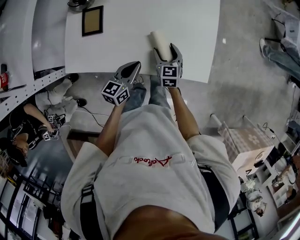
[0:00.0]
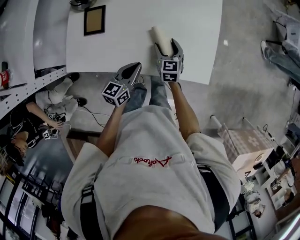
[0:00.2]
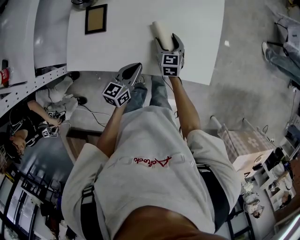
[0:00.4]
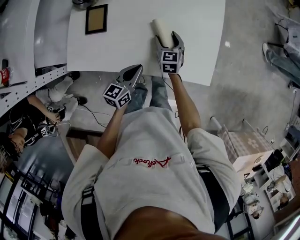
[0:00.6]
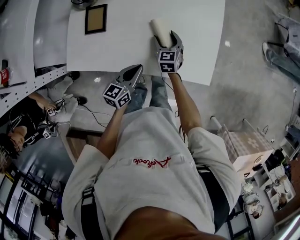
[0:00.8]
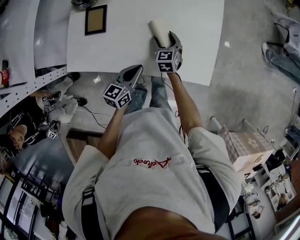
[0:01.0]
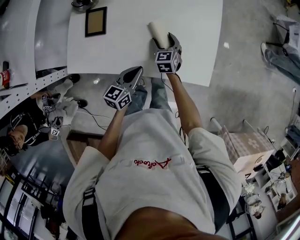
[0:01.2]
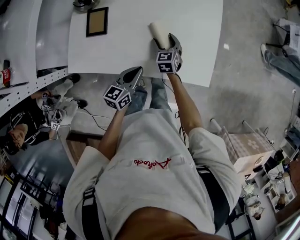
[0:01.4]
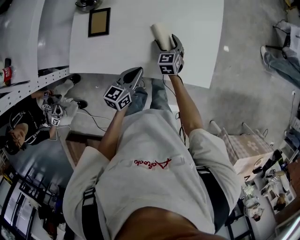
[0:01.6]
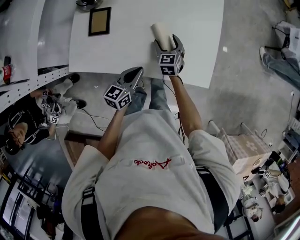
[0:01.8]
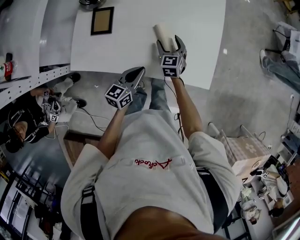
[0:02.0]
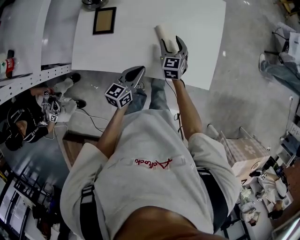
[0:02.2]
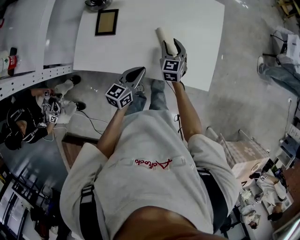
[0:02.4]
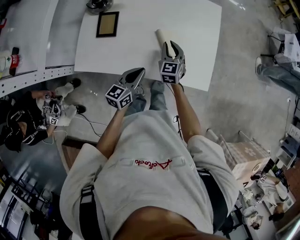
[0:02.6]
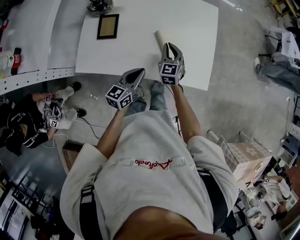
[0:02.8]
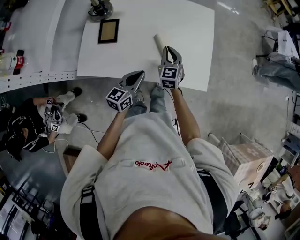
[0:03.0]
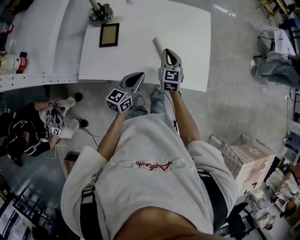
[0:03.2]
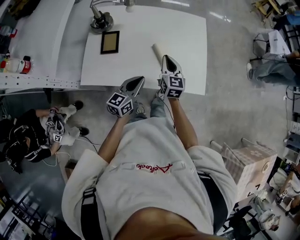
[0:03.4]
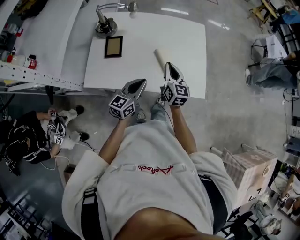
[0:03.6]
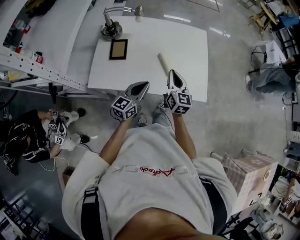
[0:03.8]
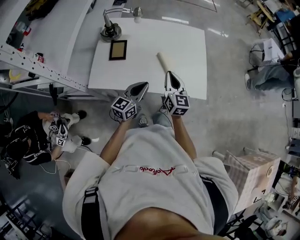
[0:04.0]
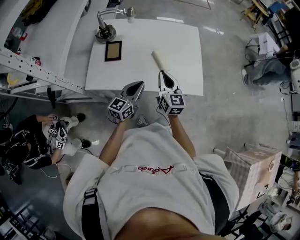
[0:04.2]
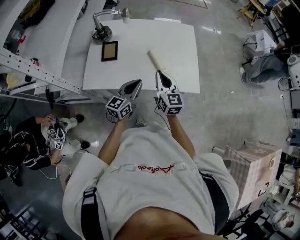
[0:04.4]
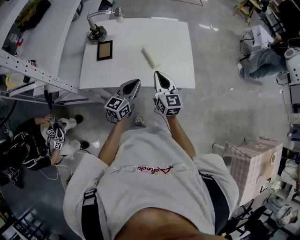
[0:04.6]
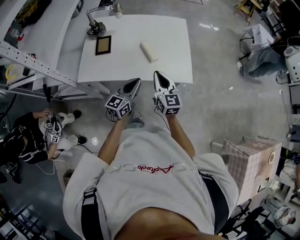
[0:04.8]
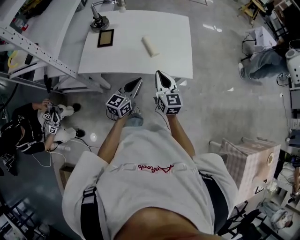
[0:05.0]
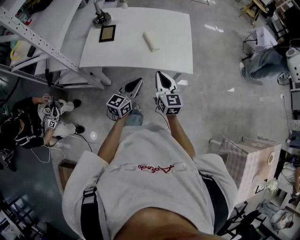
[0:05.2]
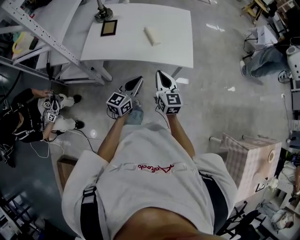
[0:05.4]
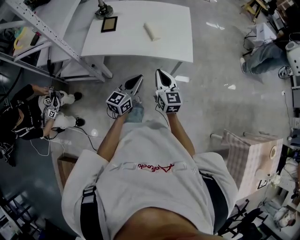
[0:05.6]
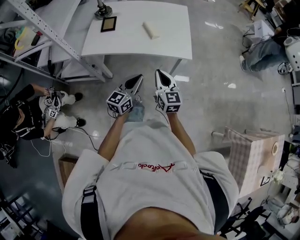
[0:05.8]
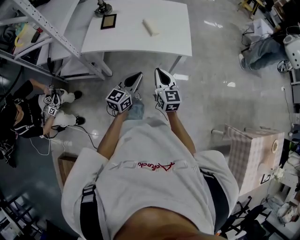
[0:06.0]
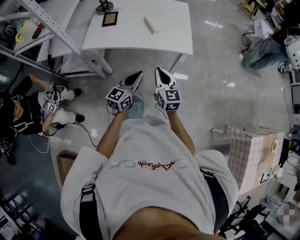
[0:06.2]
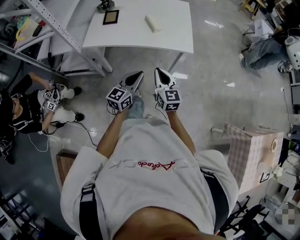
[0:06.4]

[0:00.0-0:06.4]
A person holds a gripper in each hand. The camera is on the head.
0:00.0 to 0:01.6: The right gripper shifts approximately 5 cm forward.
0:01.6 to 0:03.2: The right gripper moves upward, about 15 cm, and closes up. Meanwhile the left gripper goes some 5 cm upward.
0:03.2 to 0:04.8: The right gripper travels backward and upward by about 20 cm. The left gripper shifts roughly 10 cm backward, upward and to the right.
0:04.8 to 0:06.4: The grippers both shift backward by some 20 cm.

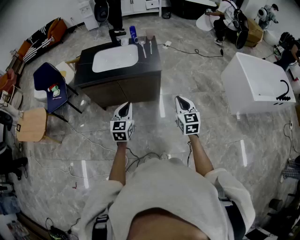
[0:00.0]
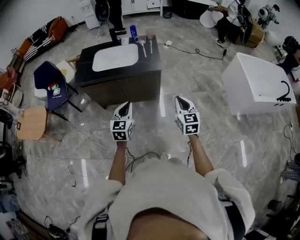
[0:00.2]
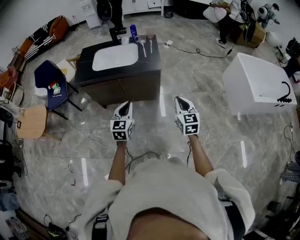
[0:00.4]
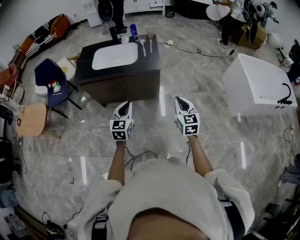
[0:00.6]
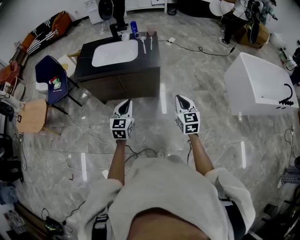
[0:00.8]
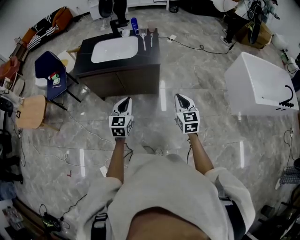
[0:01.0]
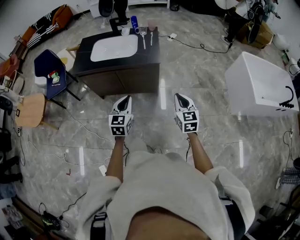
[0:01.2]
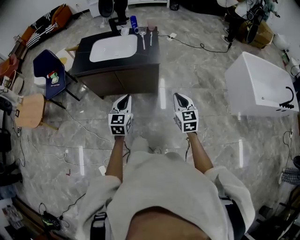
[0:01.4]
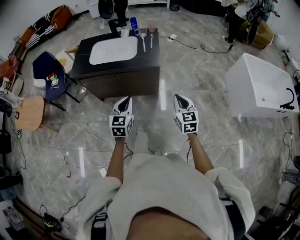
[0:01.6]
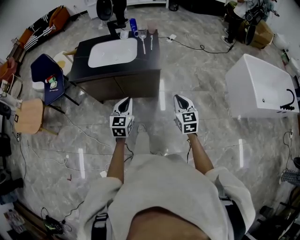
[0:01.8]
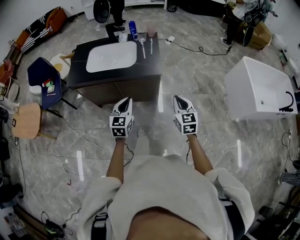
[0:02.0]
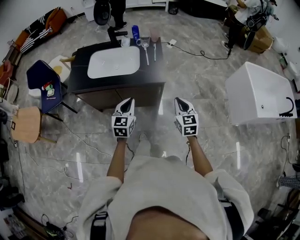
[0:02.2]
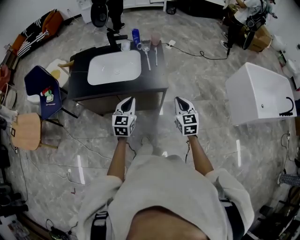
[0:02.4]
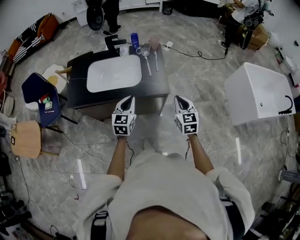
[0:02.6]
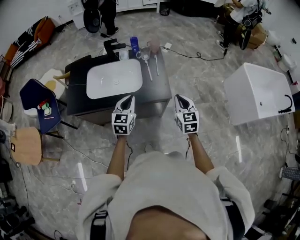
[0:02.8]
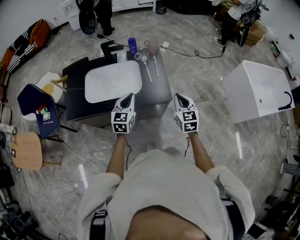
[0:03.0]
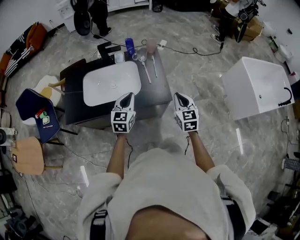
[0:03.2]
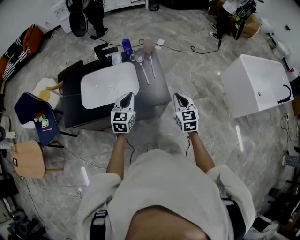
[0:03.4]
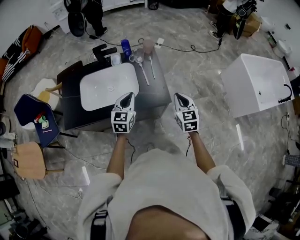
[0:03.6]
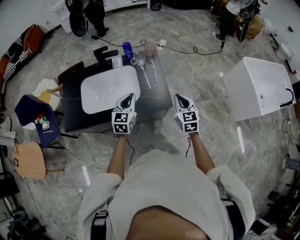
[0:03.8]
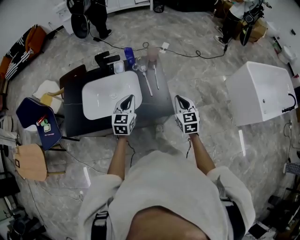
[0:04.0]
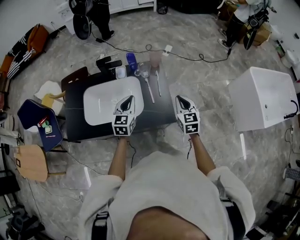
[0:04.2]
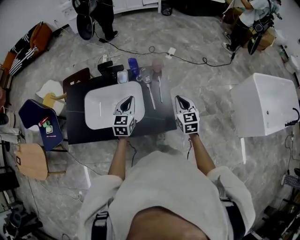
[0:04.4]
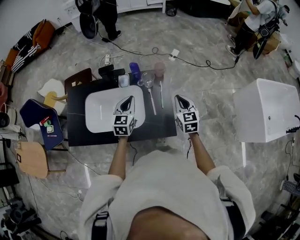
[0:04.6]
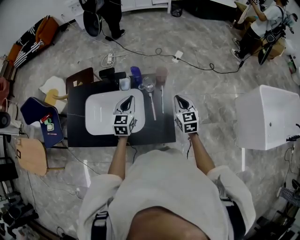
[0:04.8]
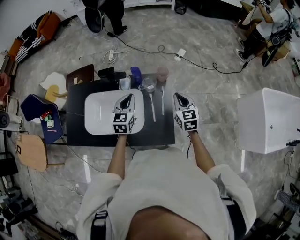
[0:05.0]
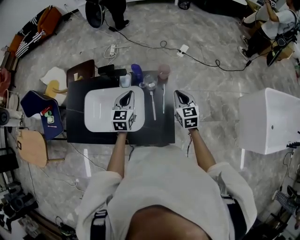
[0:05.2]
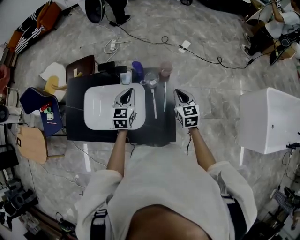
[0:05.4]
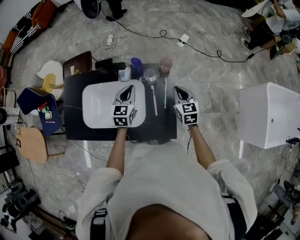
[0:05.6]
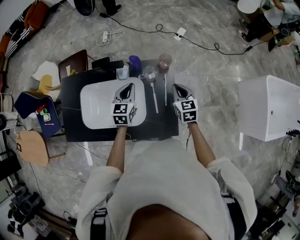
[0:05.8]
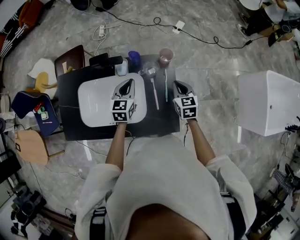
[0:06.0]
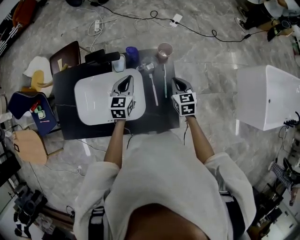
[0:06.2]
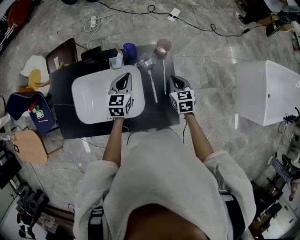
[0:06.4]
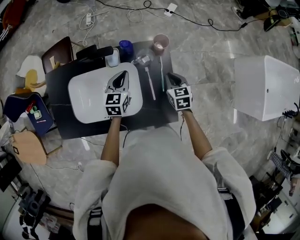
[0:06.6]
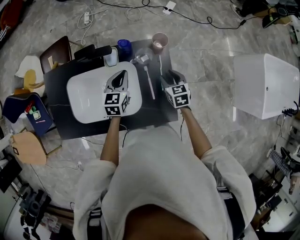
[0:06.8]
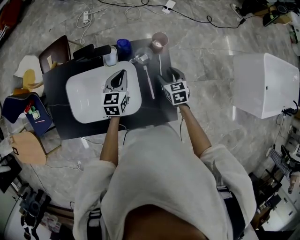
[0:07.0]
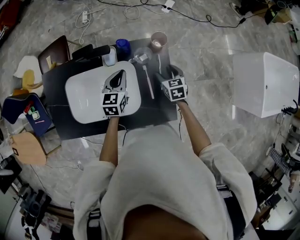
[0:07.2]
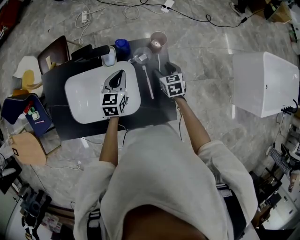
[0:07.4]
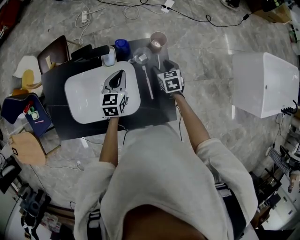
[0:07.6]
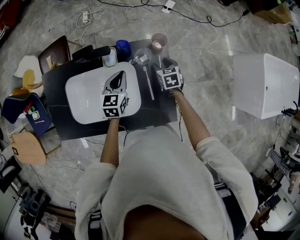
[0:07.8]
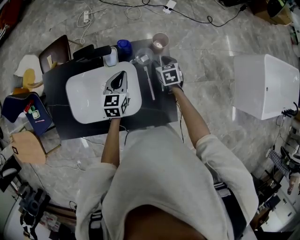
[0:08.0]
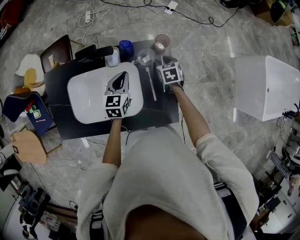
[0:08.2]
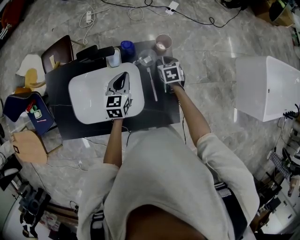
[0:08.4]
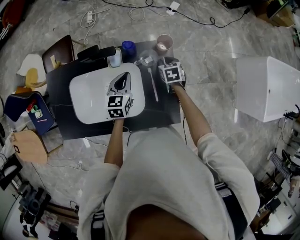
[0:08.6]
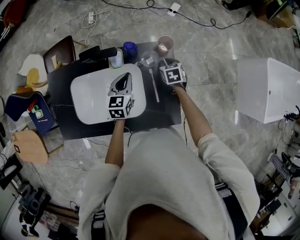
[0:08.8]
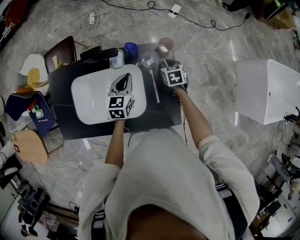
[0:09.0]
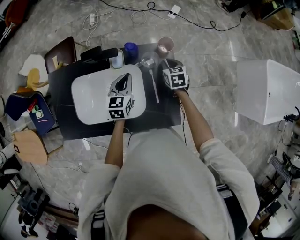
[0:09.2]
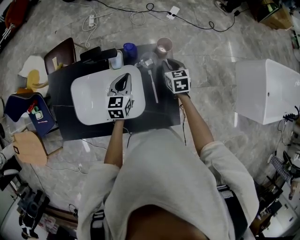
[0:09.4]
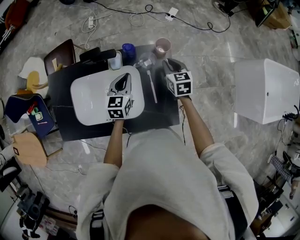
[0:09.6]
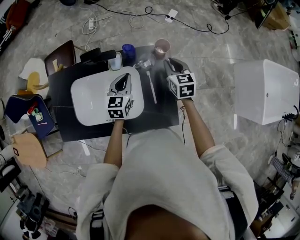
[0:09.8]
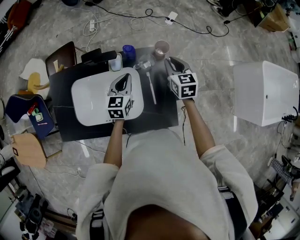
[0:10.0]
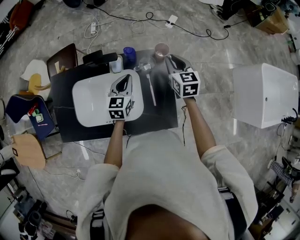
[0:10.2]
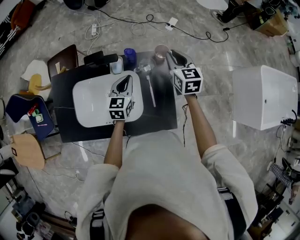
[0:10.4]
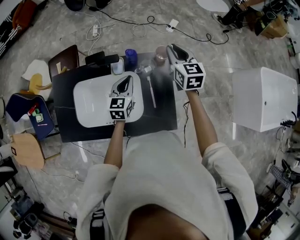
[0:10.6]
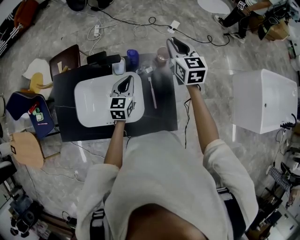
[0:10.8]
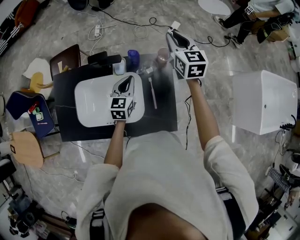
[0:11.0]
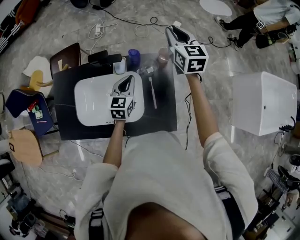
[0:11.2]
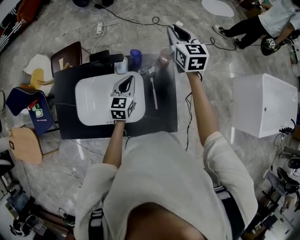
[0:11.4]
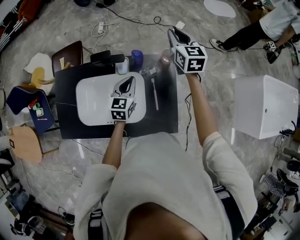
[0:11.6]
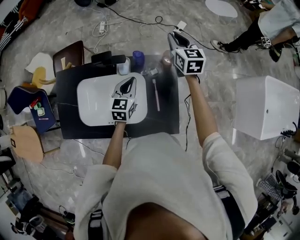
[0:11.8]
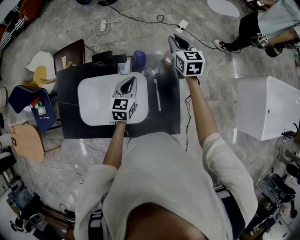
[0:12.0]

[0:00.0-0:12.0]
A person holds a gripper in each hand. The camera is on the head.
0:00.0 to 0:01.6: The right gripper moves roughly 5 cm, while the left gripper shifts by roughly 5 cm.
0:01.6 to 0:03.0: Both grippers move forward, some 30 cm.
0:03.0 to 0:04.4: Both grippers travel together forward, approximately 20 cm.
0:04.4 to 0:06.0: The grippers both shift forward and downward by approximately 15 cm.
0:06.0 to 0:07.6: The right gripper heads downward, covering some 10 cm, and opens.
0:07.6 to 0:09.0: The right gripper closes.
0:09.0 to 0:10.4: The right gripper heads upward, covering some 20 cm, and changes its angle by roughly 30 degrees.
0:10.4 to 0:12.0: The right gripper is displaced forward by some 10 cm.

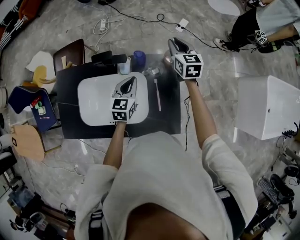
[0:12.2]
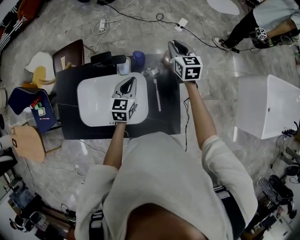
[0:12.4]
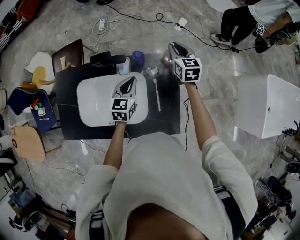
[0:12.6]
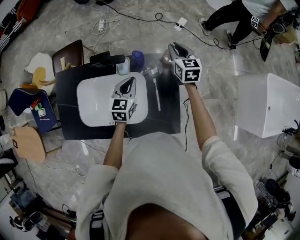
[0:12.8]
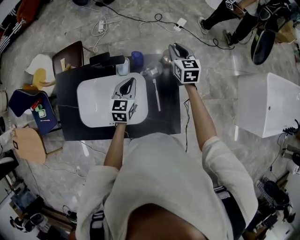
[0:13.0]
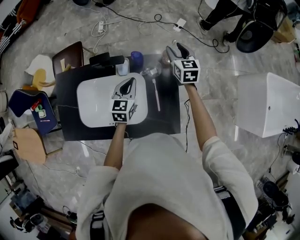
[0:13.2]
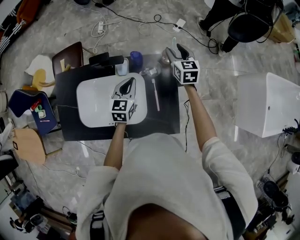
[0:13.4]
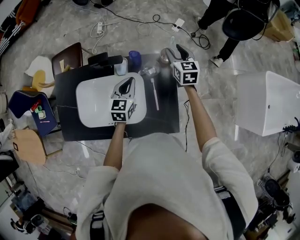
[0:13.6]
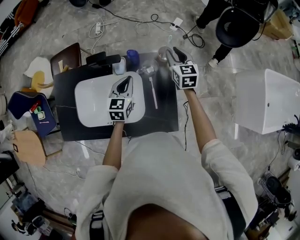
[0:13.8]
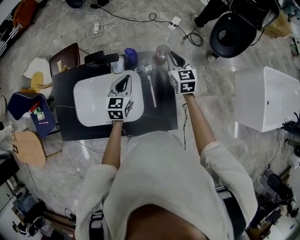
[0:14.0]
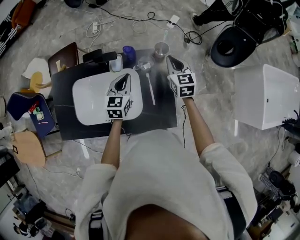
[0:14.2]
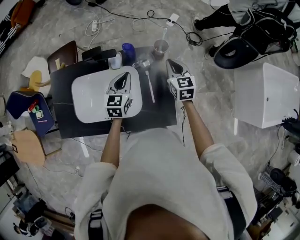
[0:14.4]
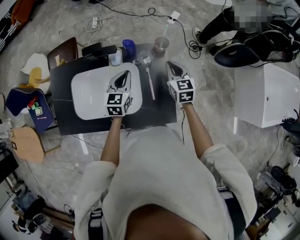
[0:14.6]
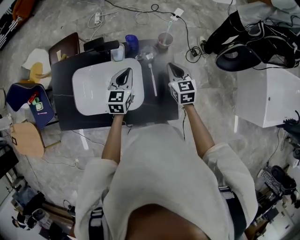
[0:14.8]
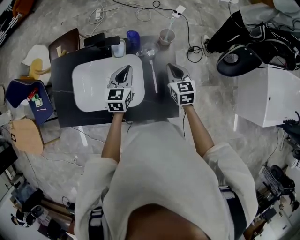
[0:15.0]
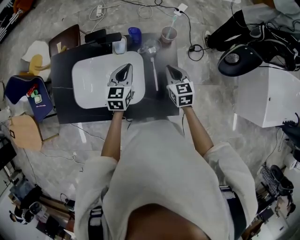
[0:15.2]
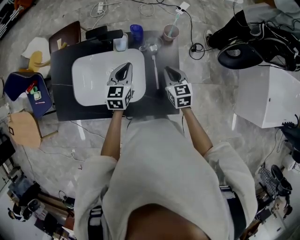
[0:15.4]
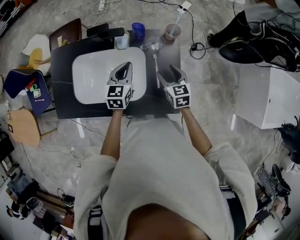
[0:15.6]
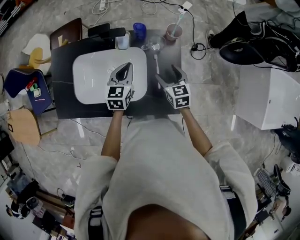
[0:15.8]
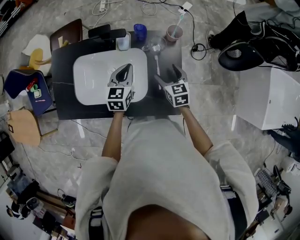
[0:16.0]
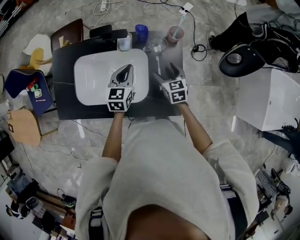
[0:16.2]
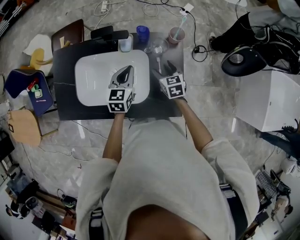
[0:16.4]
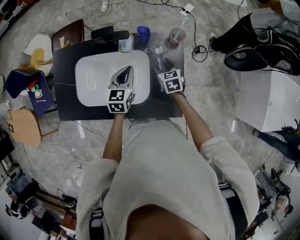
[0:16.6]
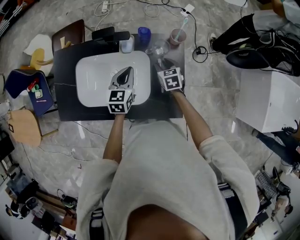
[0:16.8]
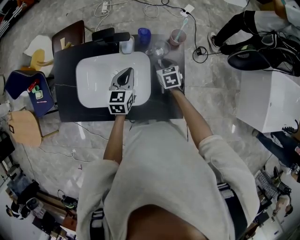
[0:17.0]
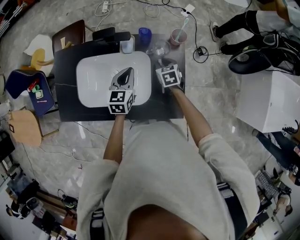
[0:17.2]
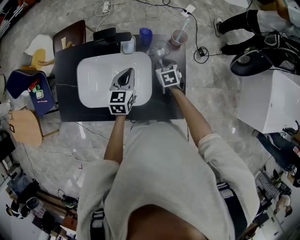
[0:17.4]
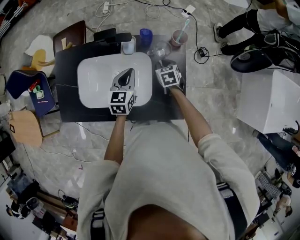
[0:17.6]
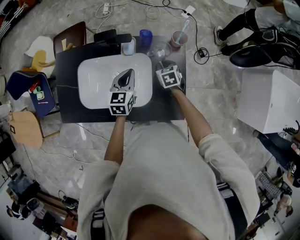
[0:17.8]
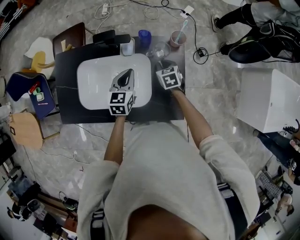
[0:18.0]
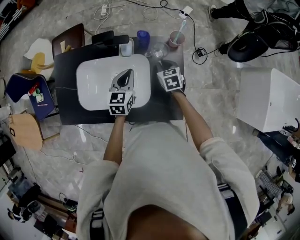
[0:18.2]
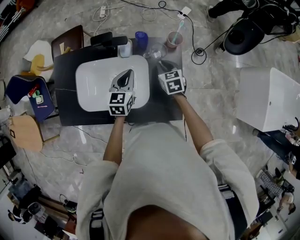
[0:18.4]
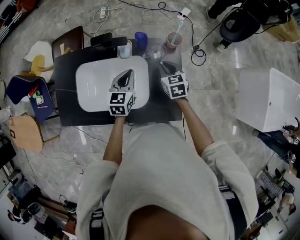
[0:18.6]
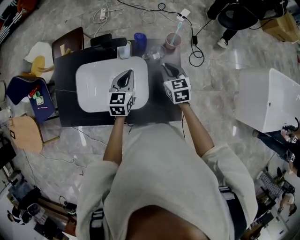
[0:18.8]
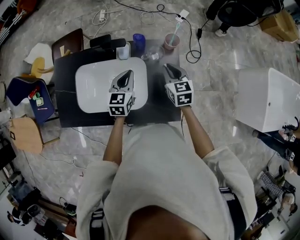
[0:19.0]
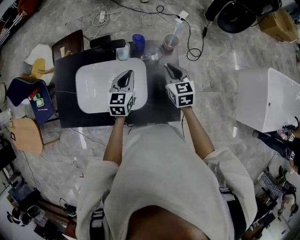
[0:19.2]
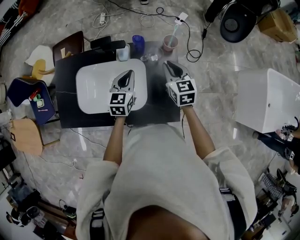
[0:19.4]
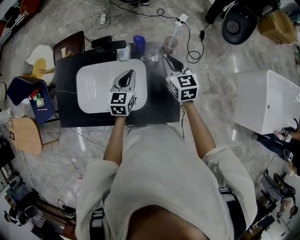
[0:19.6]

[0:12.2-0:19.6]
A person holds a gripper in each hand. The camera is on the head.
0:12.2 to 0:13.6: The right gripper ends up about 5 cm from where it was, and opens its fingers.
0:13.6 to 0:15.2: The right gripper is displaced backward by approximately 20 cm, and closes its fingers.
0:15.2 to 0:16.6: The right gripper is displaced downward and to the left by roughly 10 cm, and opens its fingers.
0:16.6 to 0:18.2: The right gripper closes up.
0:18.2 to 0:19.6: The right gripper travels upward by roughly 15 cm, and changes its angle by approximately 20 degrees.
